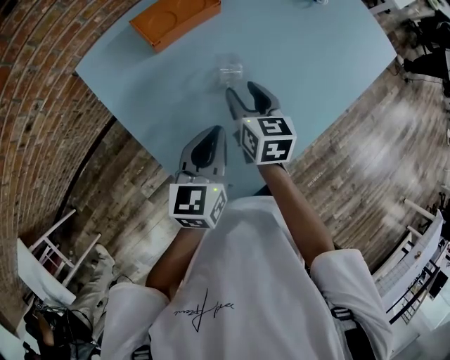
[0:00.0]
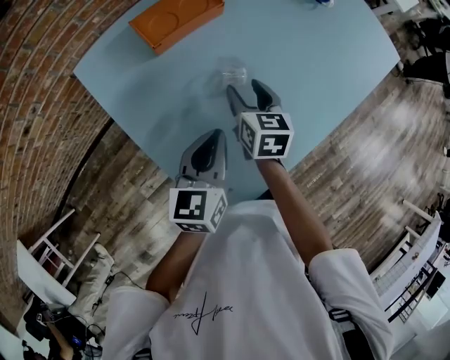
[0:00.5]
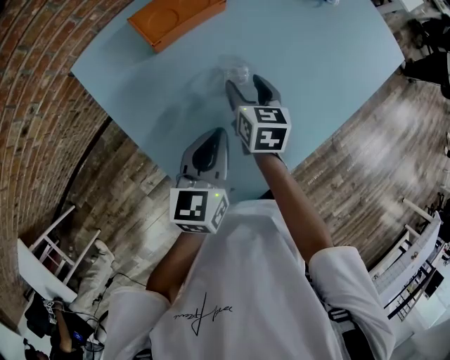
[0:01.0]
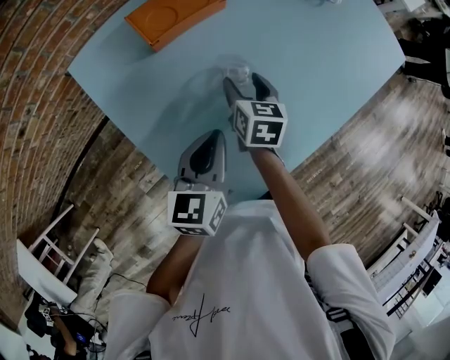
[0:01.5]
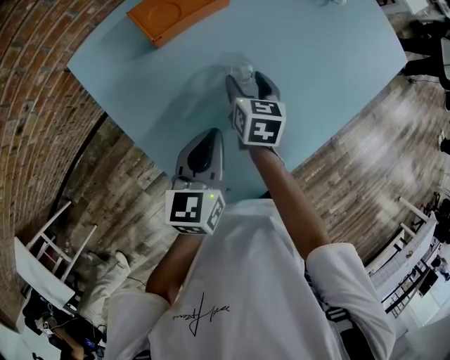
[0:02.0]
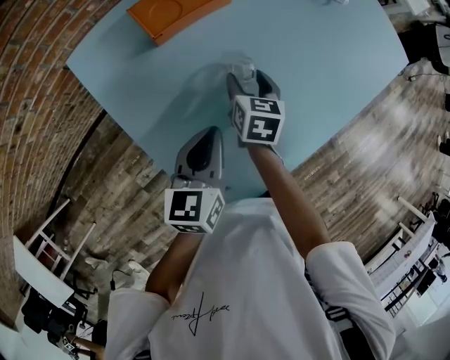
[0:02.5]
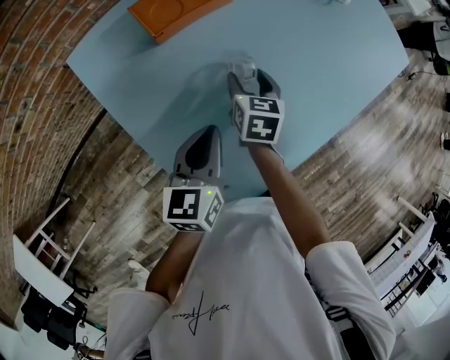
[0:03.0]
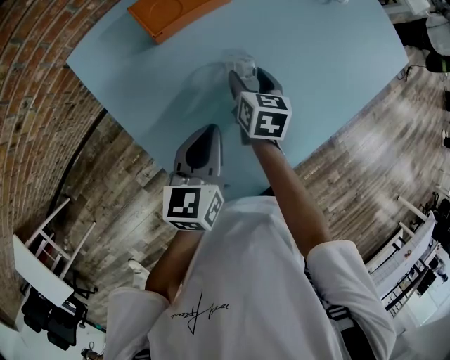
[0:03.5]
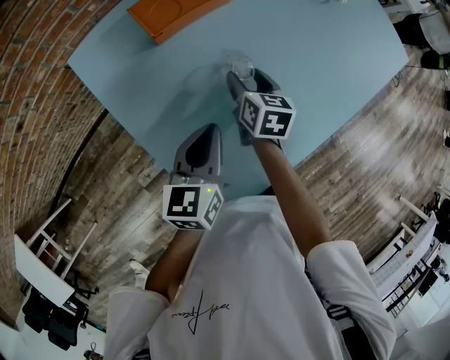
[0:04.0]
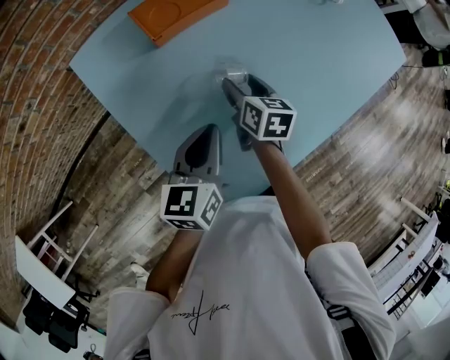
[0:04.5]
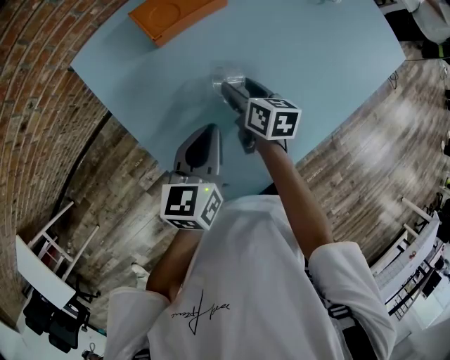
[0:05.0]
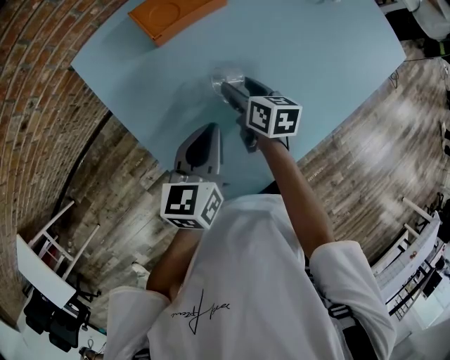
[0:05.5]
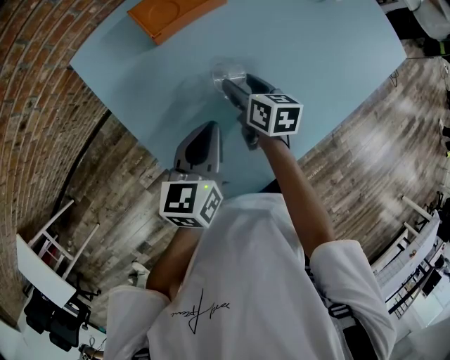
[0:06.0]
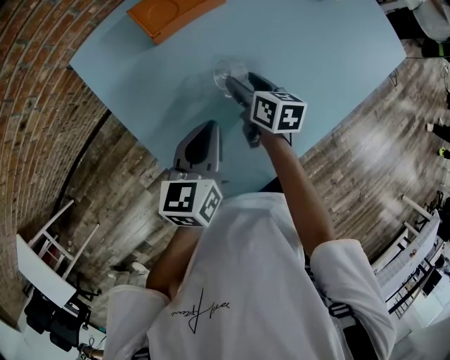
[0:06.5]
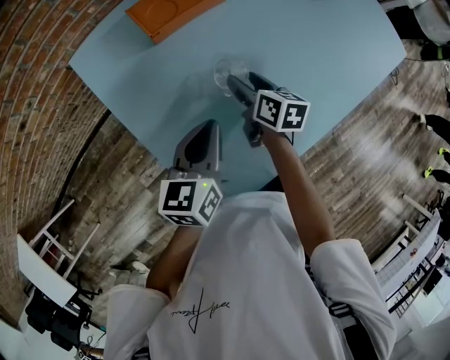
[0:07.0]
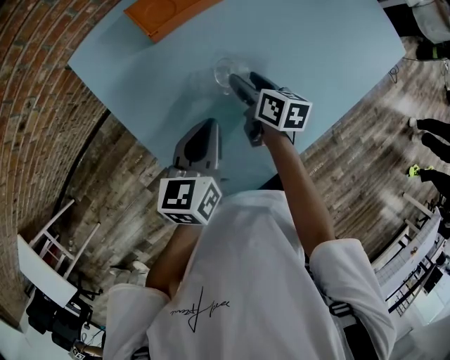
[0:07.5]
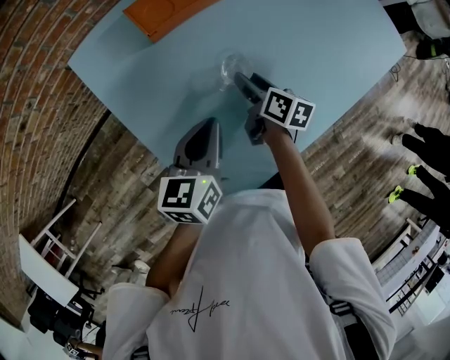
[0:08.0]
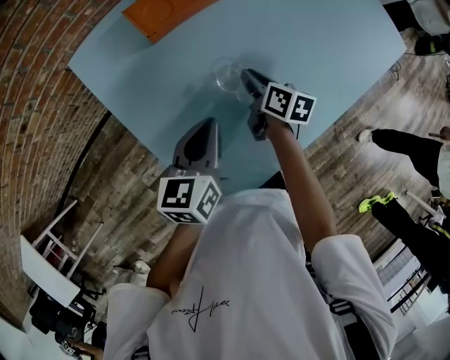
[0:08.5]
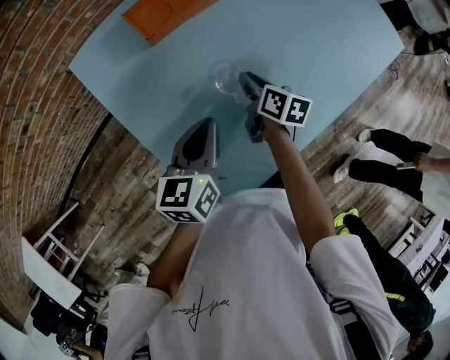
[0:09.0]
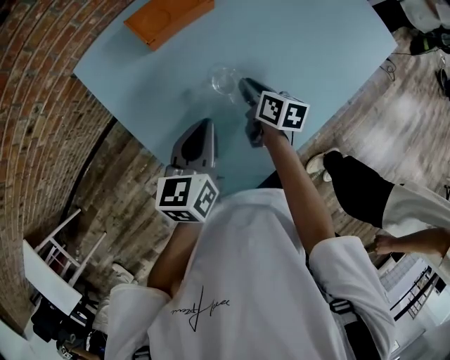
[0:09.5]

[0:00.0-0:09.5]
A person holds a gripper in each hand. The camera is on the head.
0:00.0 to 0:02.0: The right gripper moves downward, approximately 5 cm.
0:02.0 to 0:04.0: The grippers stay close to where they were, moving slightly.
0:04.0 to 0:07.5: There are only small adjustments of the grippers.
0:07.5 to 0:09.5: The right gripper closes up.

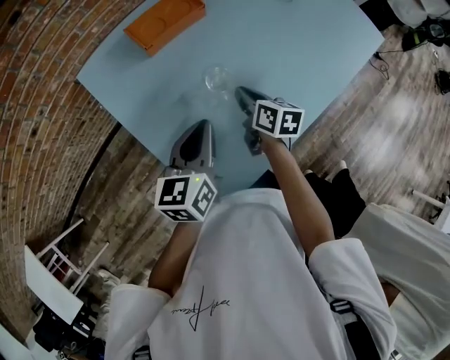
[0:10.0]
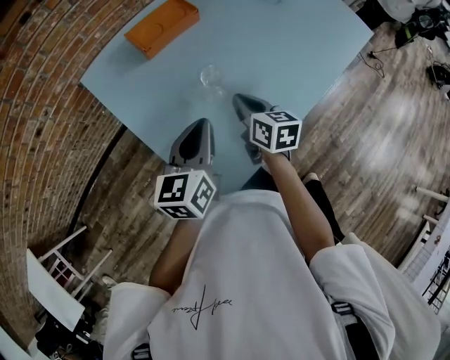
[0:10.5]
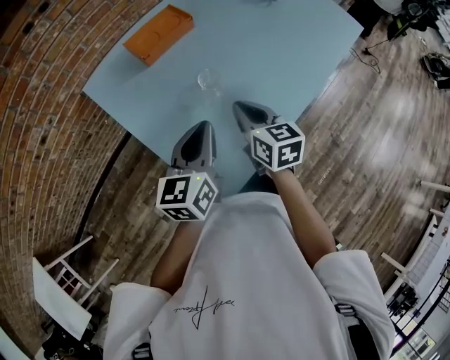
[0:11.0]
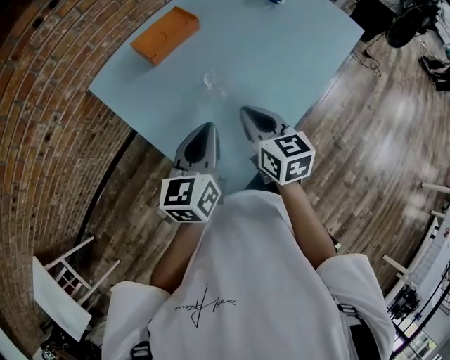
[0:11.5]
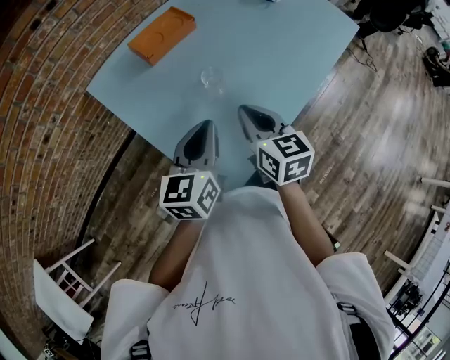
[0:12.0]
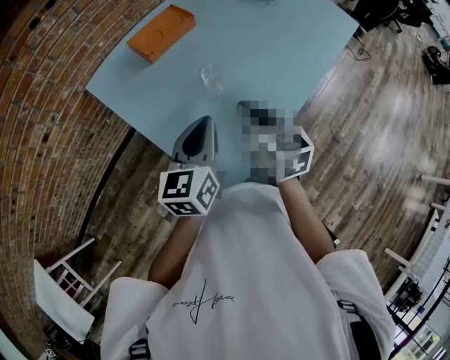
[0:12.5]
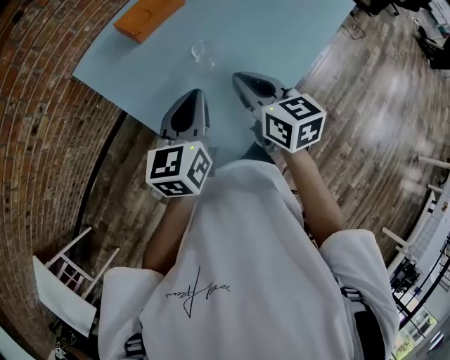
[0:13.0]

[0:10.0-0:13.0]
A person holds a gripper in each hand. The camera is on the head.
0:10.0 to 0:11.5: The left gripper heads backward, covering approximately 5 cm. Meanwhile the right gripper heads upward and backward, covering some 15 cm, and turns by about 20 degrees.
0:11.5 to 0:13.0: The grippers stay close to where they were, moving slightly.

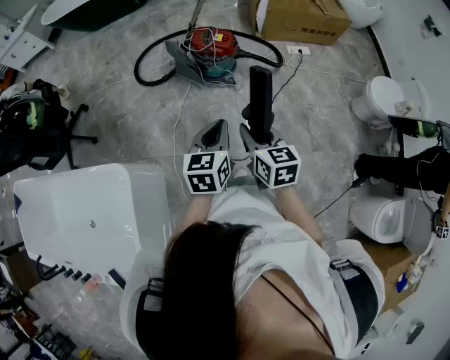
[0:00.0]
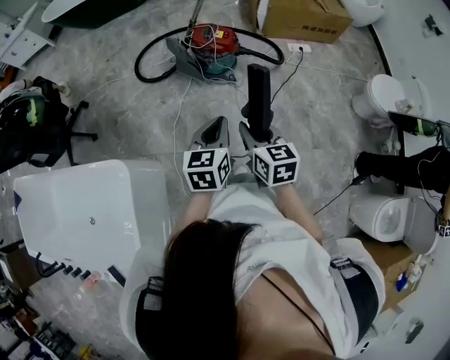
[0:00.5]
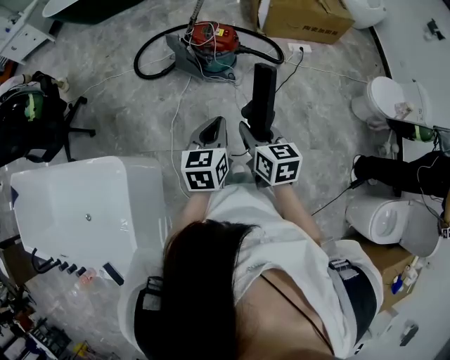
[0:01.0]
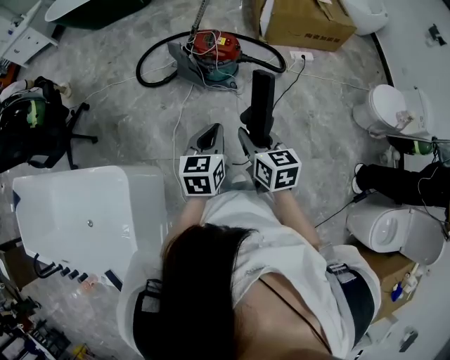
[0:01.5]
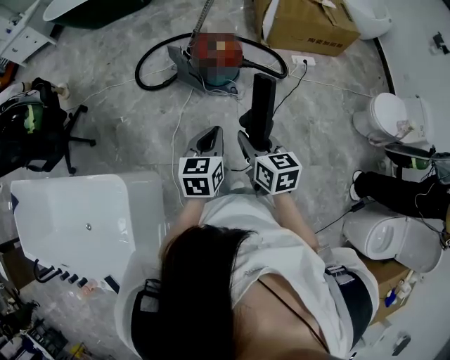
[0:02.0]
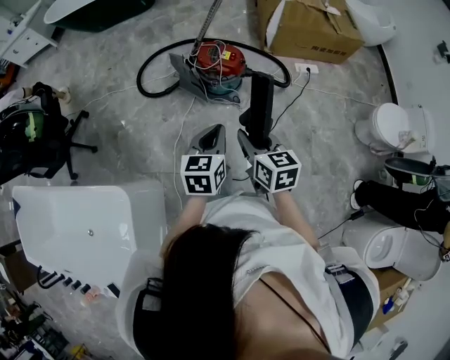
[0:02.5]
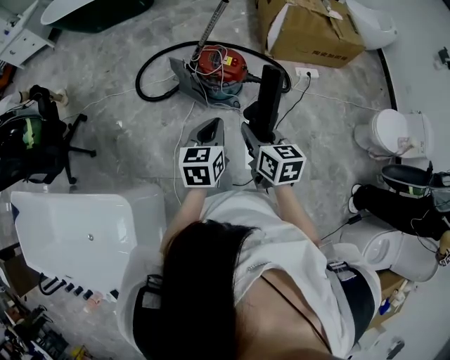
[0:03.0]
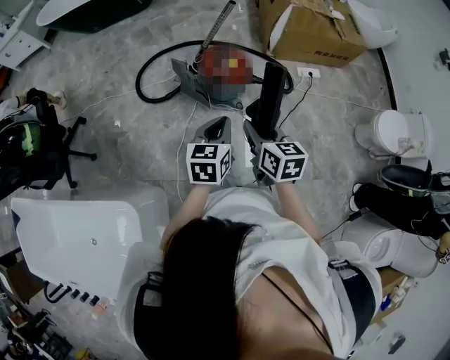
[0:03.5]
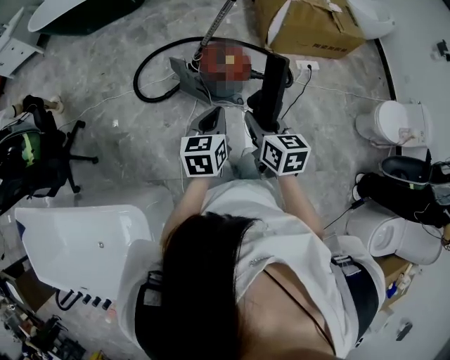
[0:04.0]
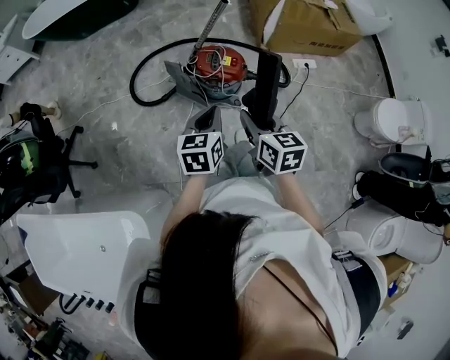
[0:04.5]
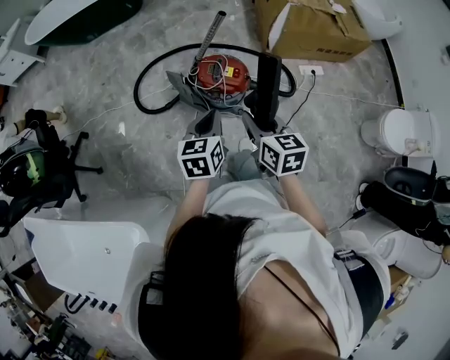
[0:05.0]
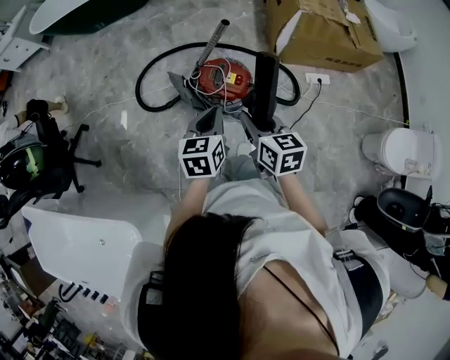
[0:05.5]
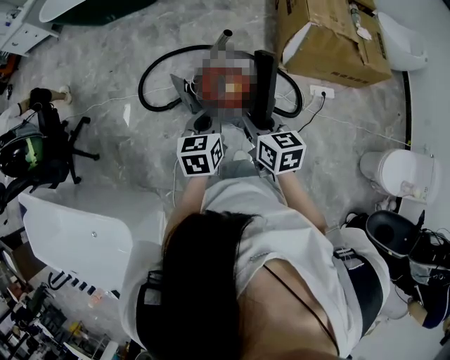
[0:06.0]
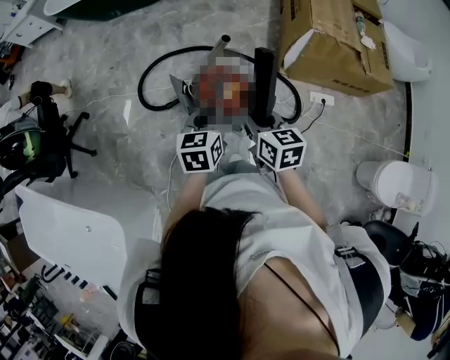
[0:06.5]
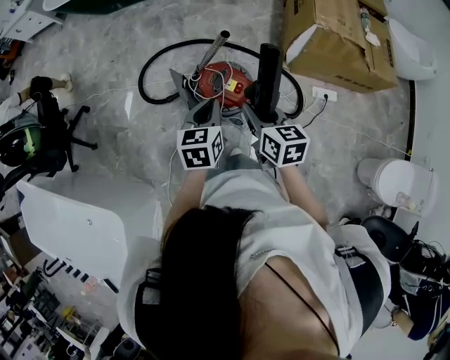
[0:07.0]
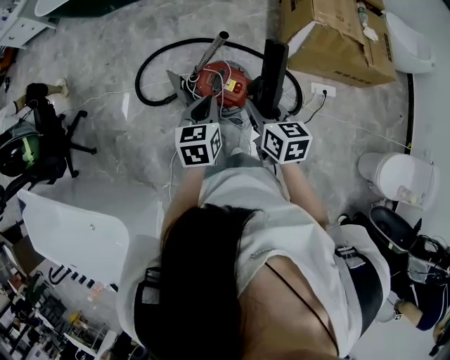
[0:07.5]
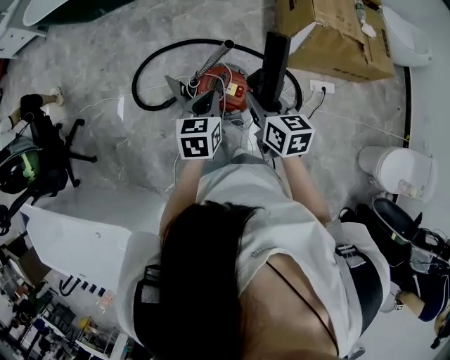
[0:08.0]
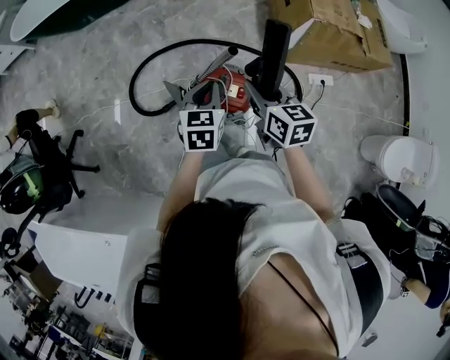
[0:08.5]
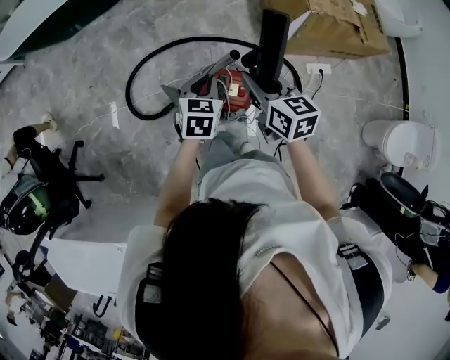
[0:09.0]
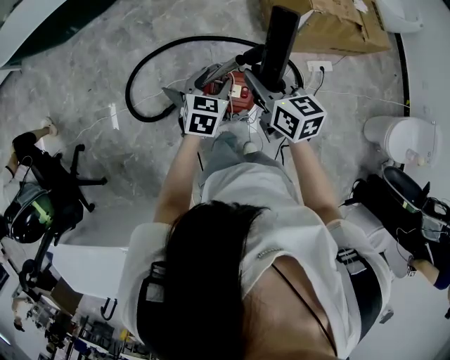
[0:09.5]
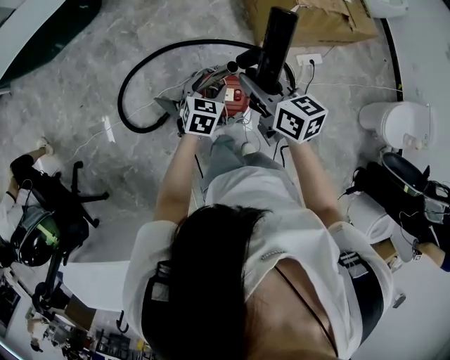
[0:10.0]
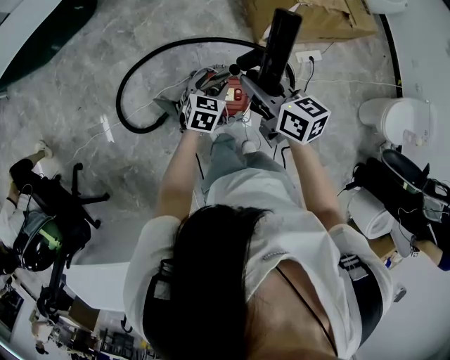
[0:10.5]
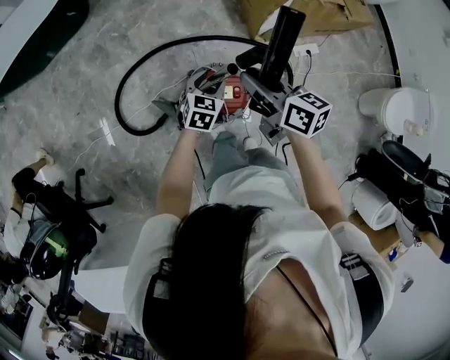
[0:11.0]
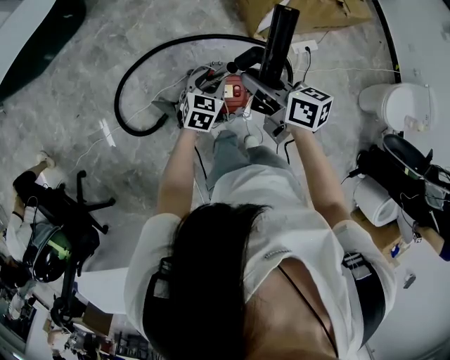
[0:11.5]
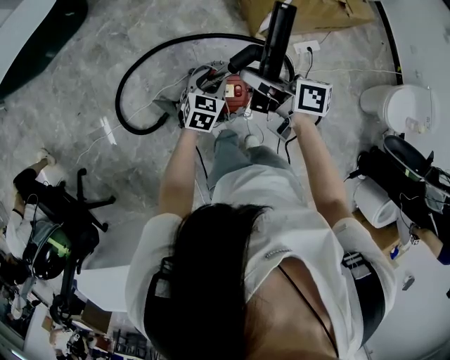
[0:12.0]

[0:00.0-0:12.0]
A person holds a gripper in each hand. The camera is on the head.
0:00.0 to 0:02.0: Both grippers travel together forward, some 5 cm.
0:02.0 to 0:04.0: The two grippers go approximately 20 cm forward.
0:04.0 to 0:06.0: Both grippers move forward and to the right, some 25 cm.
0:06.0 to 0:08.0: Both grippers move forward, about 10 cm.
0:08.0 to 0:10.0: The right gripper goes roughly 10 cm forward. Meanwhile the left gripper moves forward and downward, roughly 20 cm, rotates approximately 30 degrees, and opens its fingers.
0:10.0 to 0:12.0: The right gripper changes its angle by about 30 degrees.

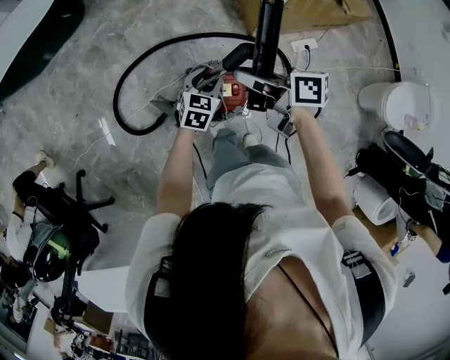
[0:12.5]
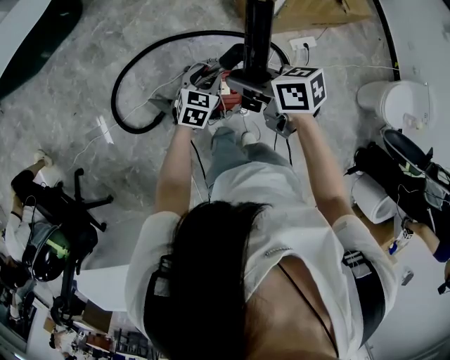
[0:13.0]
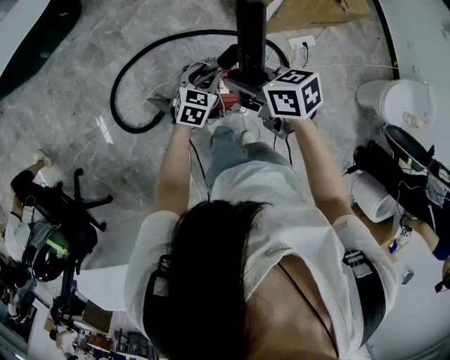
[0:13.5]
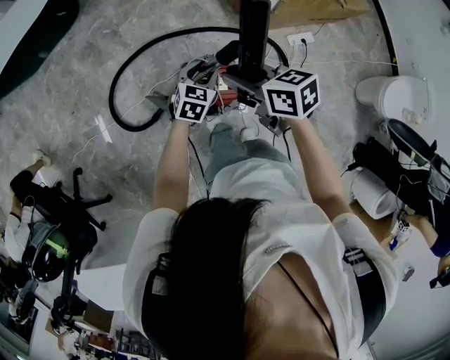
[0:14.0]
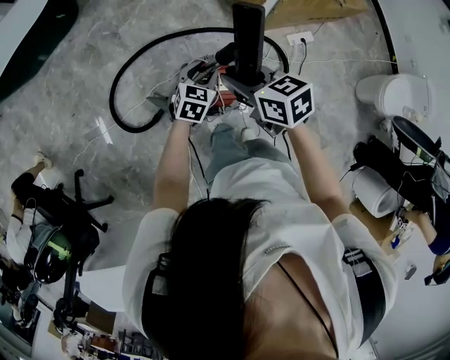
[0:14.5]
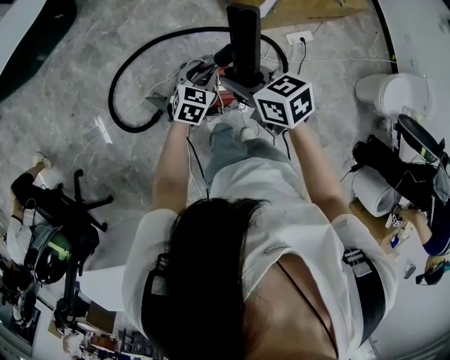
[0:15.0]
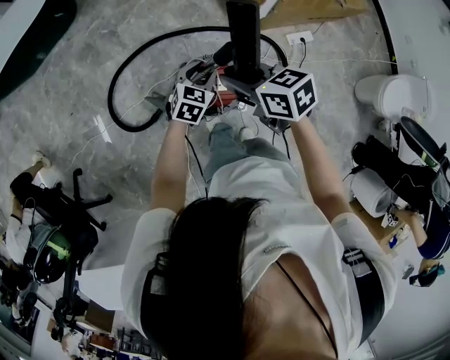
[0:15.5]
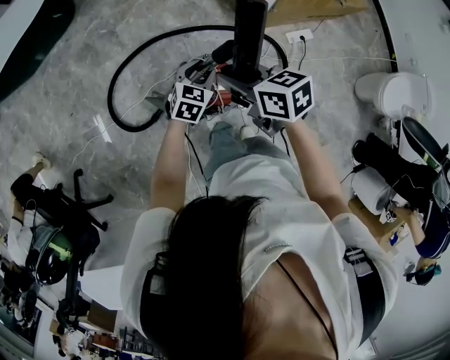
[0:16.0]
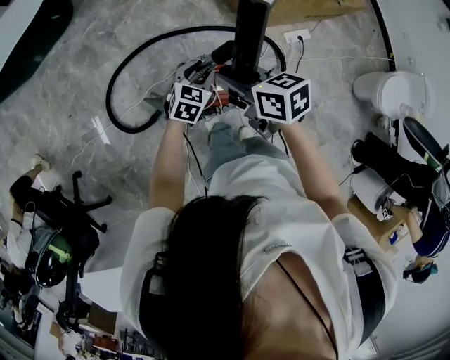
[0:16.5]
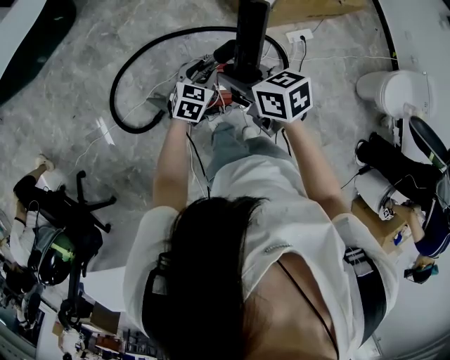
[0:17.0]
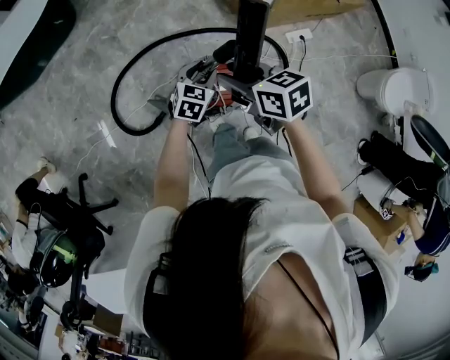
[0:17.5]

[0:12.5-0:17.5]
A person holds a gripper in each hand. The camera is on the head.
0:12.5 to 0:15.0: The right gripper turns by roughly 40 degrees.
0:15.0 to 0:17.5: The grippers make only small movements.
